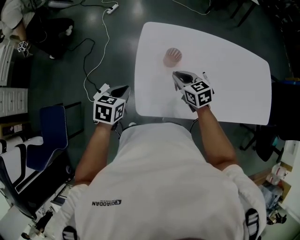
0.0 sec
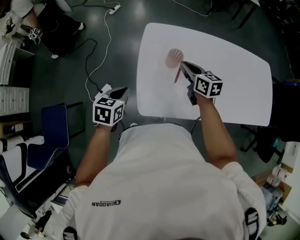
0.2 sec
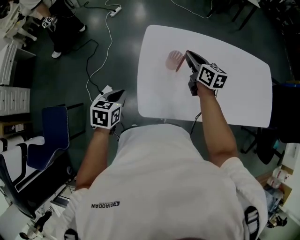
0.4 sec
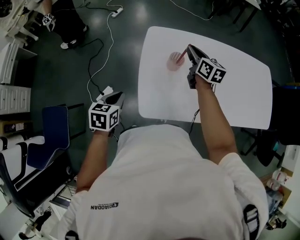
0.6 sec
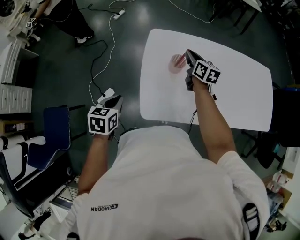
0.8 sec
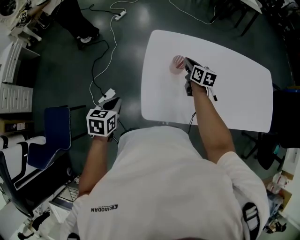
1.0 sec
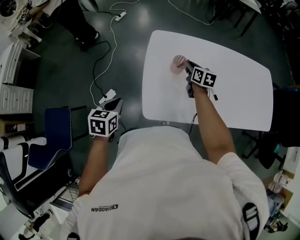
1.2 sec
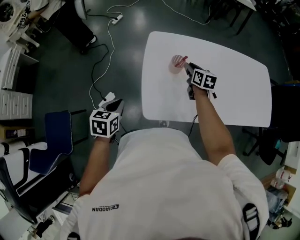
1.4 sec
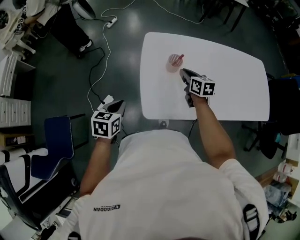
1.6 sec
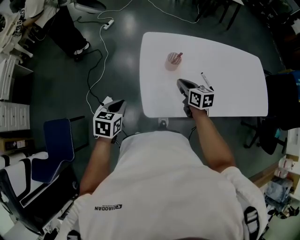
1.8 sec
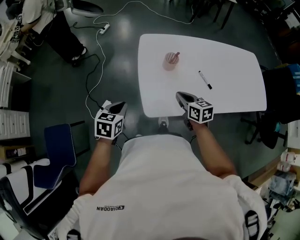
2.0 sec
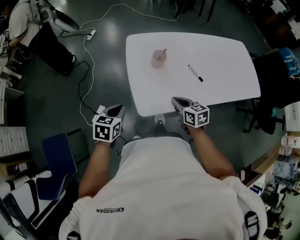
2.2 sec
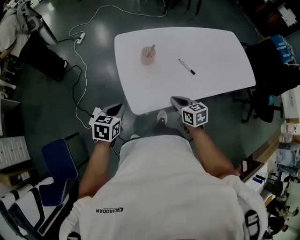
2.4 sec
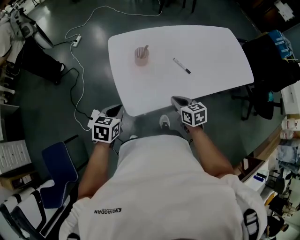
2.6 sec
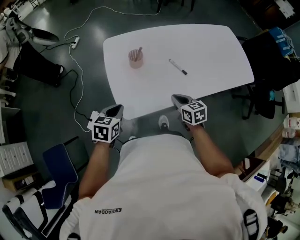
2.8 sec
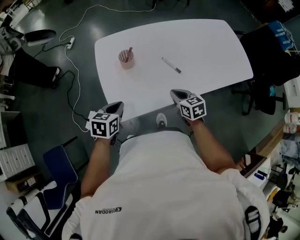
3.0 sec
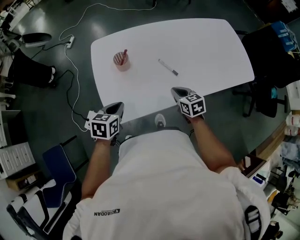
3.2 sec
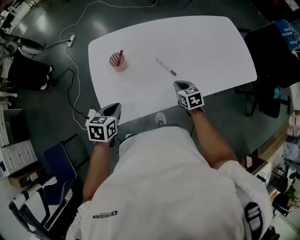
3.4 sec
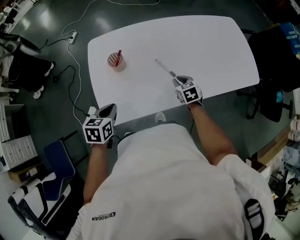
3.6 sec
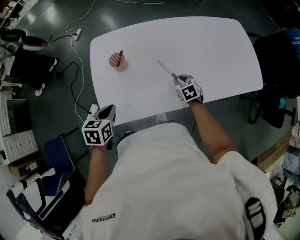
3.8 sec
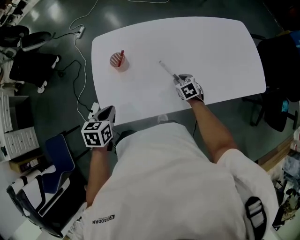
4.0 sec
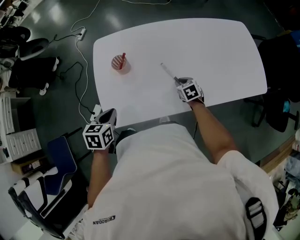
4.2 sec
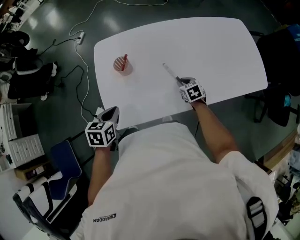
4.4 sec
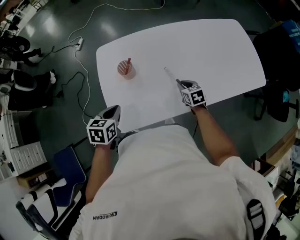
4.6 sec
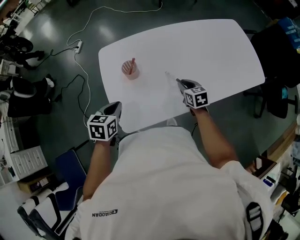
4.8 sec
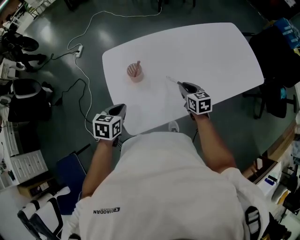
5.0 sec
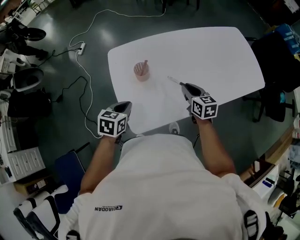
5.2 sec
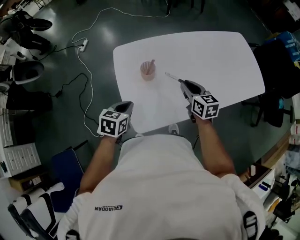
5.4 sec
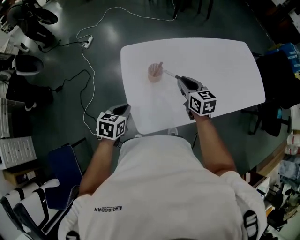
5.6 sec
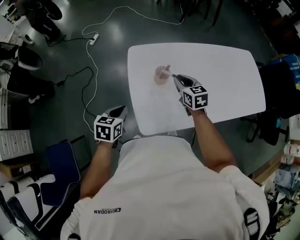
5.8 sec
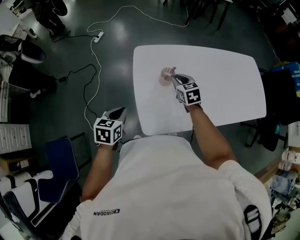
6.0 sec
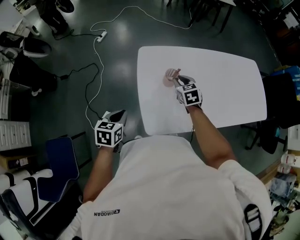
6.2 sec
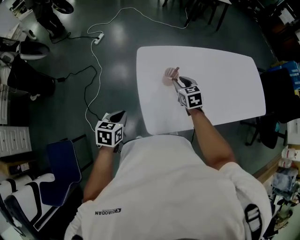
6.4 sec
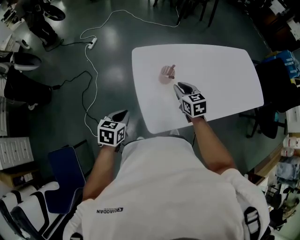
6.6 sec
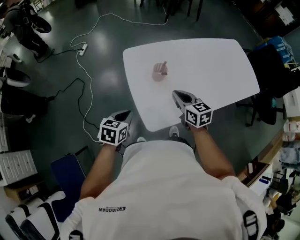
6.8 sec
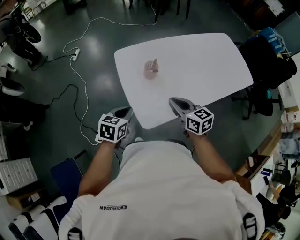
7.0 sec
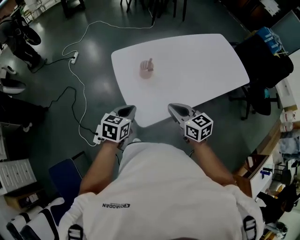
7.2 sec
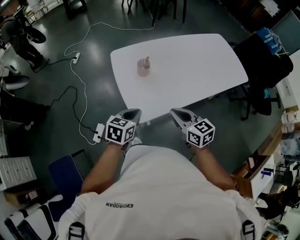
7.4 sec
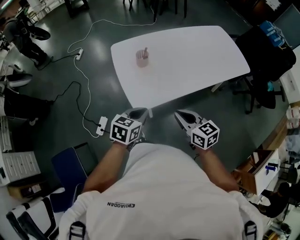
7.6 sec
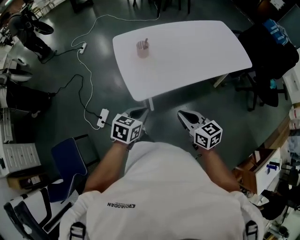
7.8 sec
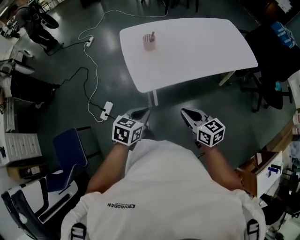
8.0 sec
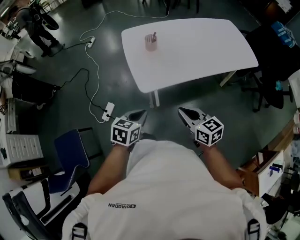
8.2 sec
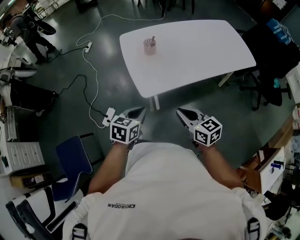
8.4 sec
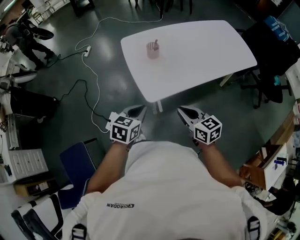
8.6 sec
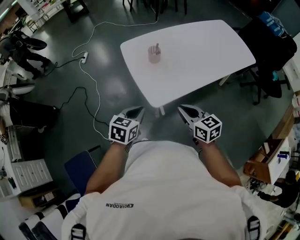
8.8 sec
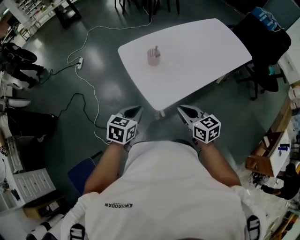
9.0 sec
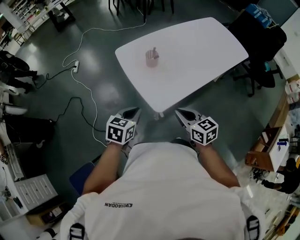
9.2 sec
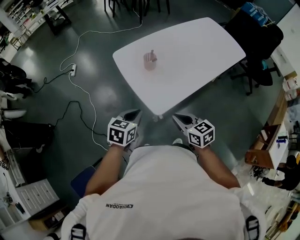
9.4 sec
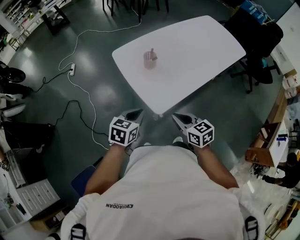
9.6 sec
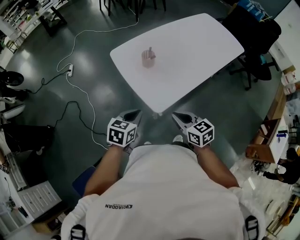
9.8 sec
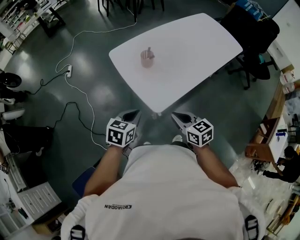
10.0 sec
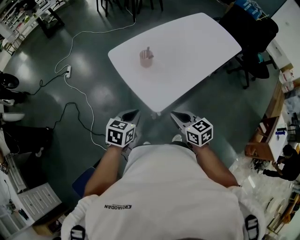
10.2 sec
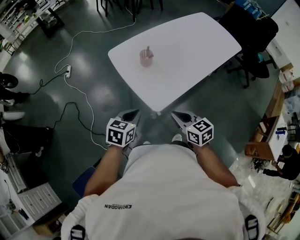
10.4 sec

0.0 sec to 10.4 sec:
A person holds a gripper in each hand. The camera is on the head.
0.0 sec to 1.4 sec: The left gripper is displaced to the left and backward by approximately 10 cm. Meanwhile the right gripper goes some 10 cm forward, and changes its angle by some 30 degrees.
1.4 sec to 3.0 sec: The left gripper moves to the right, some 20 cm, and turns by about 20 degrees. Meanwhile the right gripper travels backward and to the right by approximately 25 cm, and closes its fingers.
3.0 sec to 4.4 sec: The left gripper ends up some 5 cm from where it was. The right gripper travels forward, downward and to the right by about 20 cm.
4.4 sec to 6.0 sec: The left gripper heads to the left, covering roughly 20 cm, while the right gripper is displaced to the left and upward by roughly 35 cm.
6.0 sec to 7.4 sec: The left gripper heads to the right and backward, covering approximately 15 cm, and swivels about 30 degrees, while the right gripper shifts some 30 cm backward, and swivels approximately 20 degrees.
7.4 sec to 9.0 sec: The left gripper shifts about 10 cm to the left. The right gripper moves to the left and backward, roughly 10 cm.
9.0 sec to 10.4 sec: The grippers stay close to where they were, moving slightly.

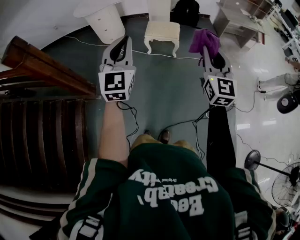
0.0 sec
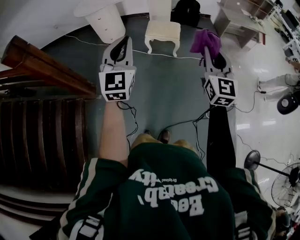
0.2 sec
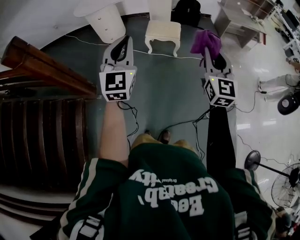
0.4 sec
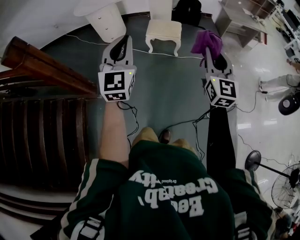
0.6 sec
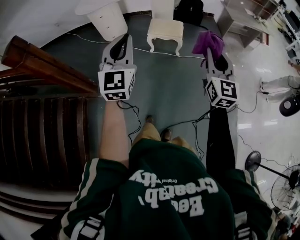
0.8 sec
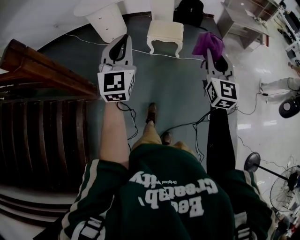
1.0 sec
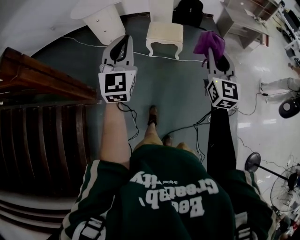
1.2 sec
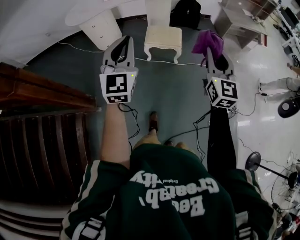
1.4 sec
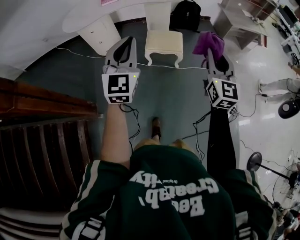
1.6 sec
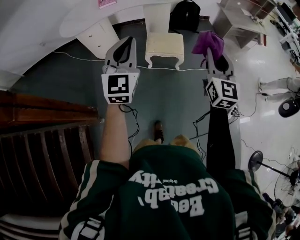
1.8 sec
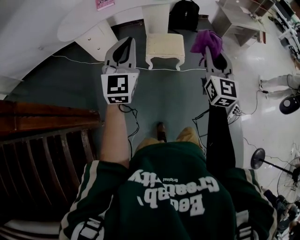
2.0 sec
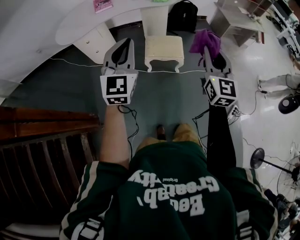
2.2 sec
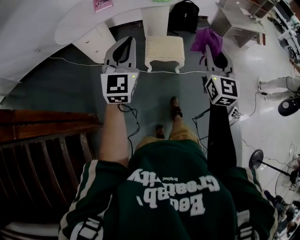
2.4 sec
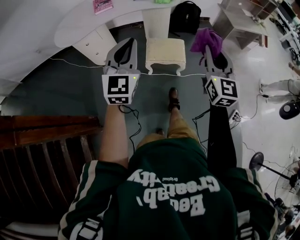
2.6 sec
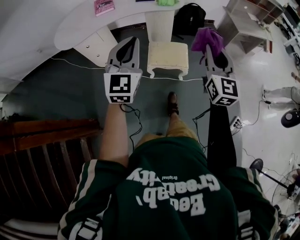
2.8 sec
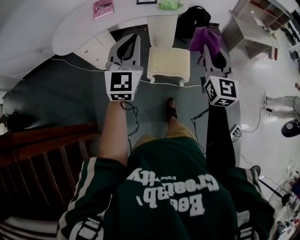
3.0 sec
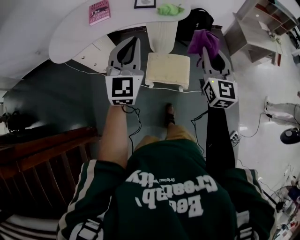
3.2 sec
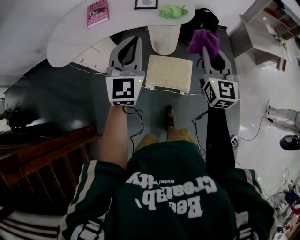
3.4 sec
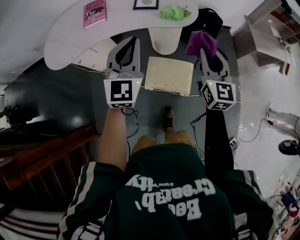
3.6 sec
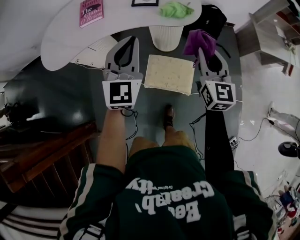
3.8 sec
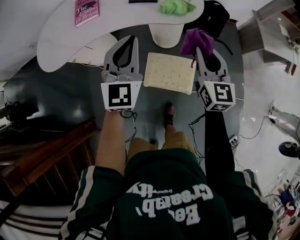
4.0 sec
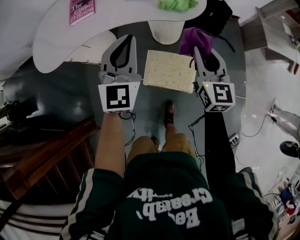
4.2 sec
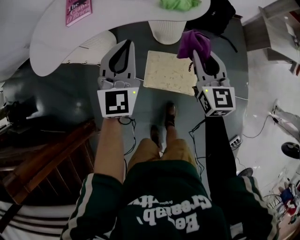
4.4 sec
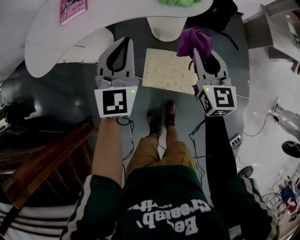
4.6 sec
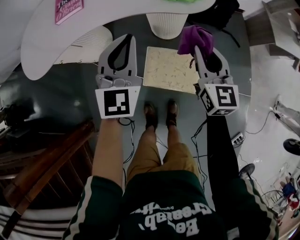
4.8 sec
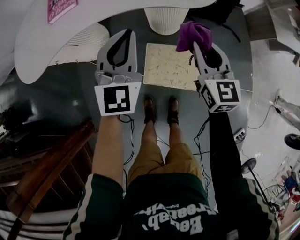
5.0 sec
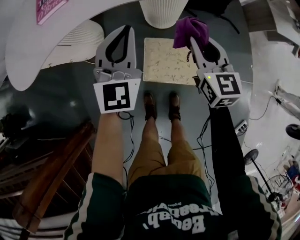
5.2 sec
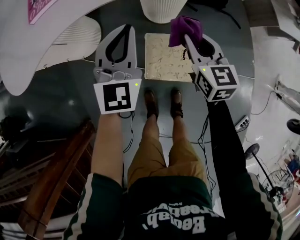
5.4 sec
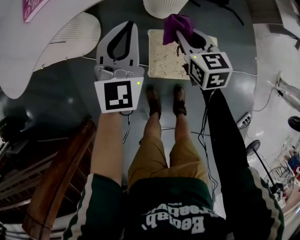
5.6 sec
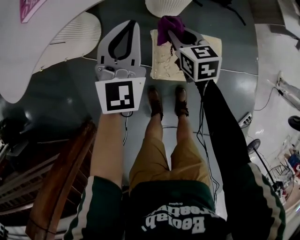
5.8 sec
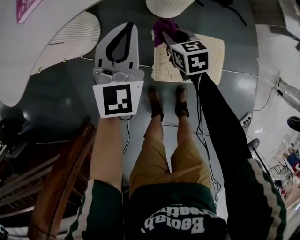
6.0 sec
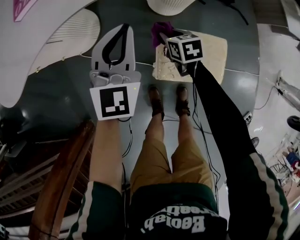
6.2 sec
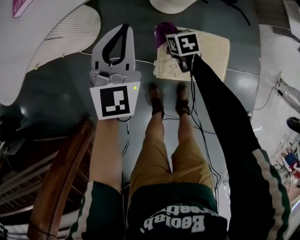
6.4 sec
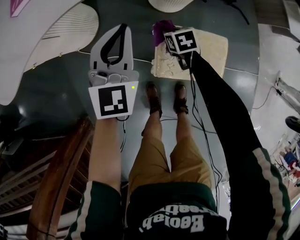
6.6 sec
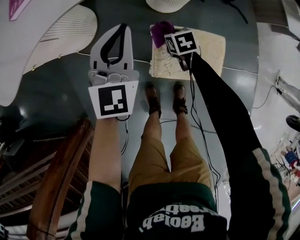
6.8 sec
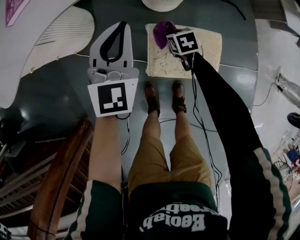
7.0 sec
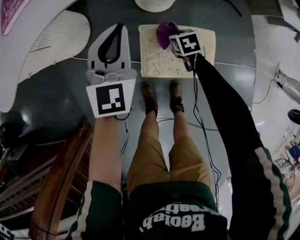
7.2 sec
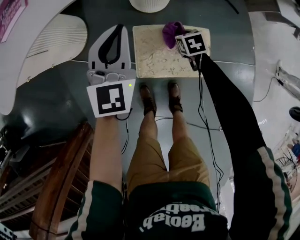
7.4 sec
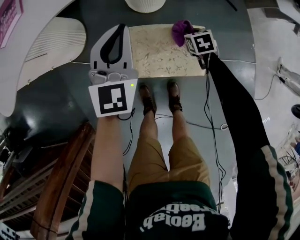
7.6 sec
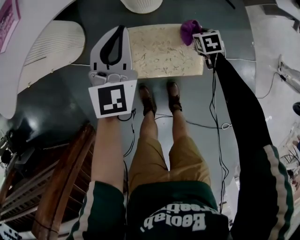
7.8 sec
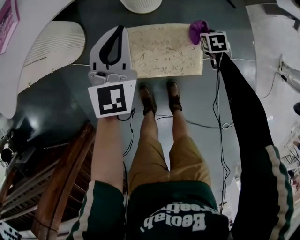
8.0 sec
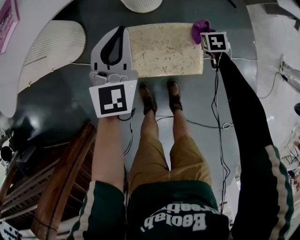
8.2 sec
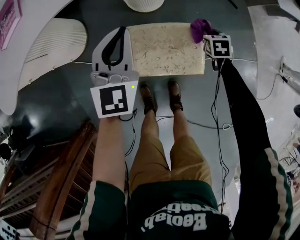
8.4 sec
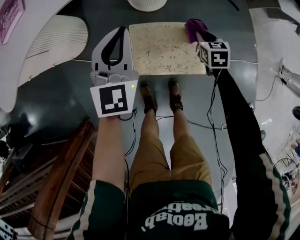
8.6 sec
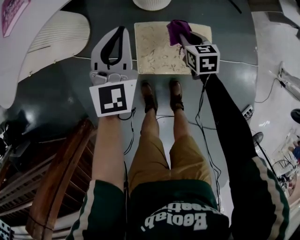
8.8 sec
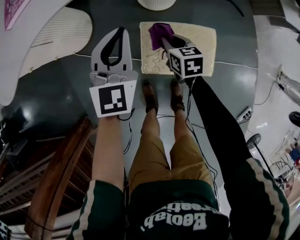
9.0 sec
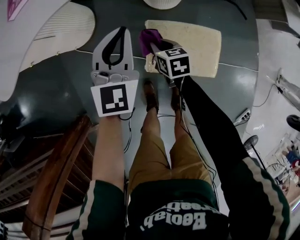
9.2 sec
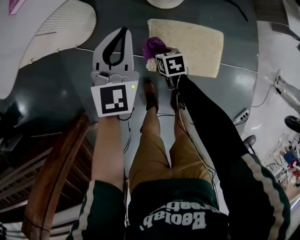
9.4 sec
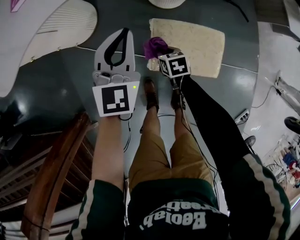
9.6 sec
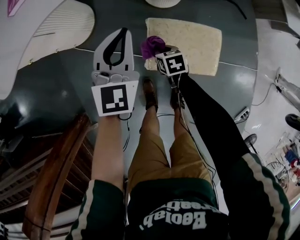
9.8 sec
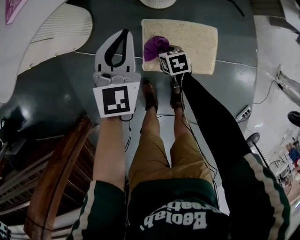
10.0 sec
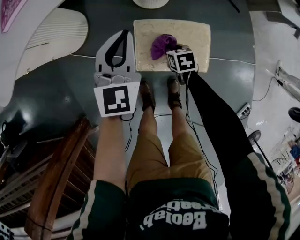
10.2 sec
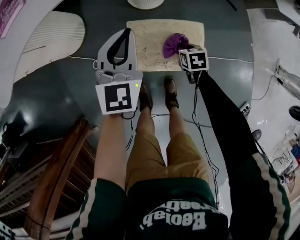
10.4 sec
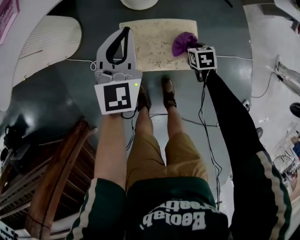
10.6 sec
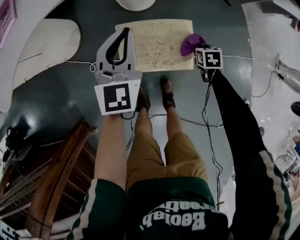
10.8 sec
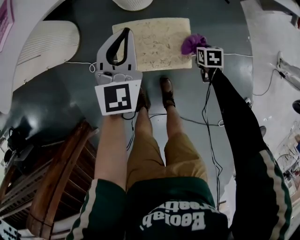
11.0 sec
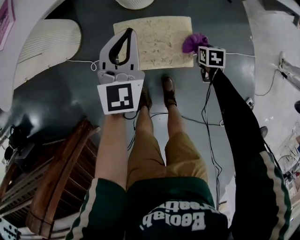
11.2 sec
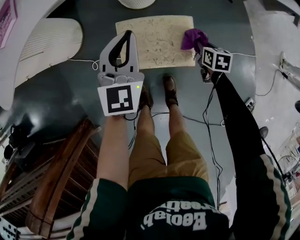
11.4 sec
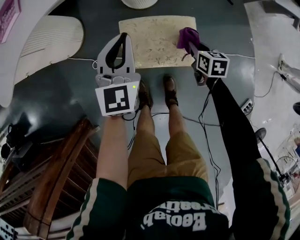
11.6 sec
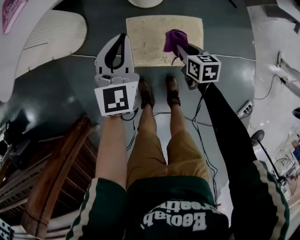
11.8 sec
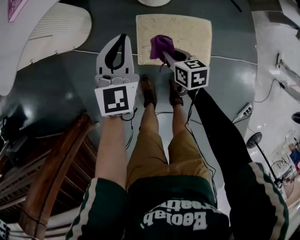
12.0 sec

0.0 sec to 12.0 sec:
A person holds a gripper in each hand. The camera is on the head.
0.0 sec to 1.6 sec: The two grippers go approximately 20 cm forward.
1.6 sec to 3.0 sec: Both grippers move forward, some 30 cm.
3.0 sec to 4.4 sec: Both grippers travel together forward and downward, about 30 cm. The right gripper changes its angle by about 20 degrees.
4.4 sec to 6.0 sec: The right gripper shifts about 35 cm downward and to the left, and points its fingers roughly 30 degrees further downward, while the left gripper is displaced downward and to the left by about 25 cm.
6.0 sec to 7.6 sec: The right gripper is displaced to the right and downward by some 25 cm, and changes its angle by about 20 degrees. Meanwhile the left gripper travels to the right by some 10 cm.
7.6 sec to 9.0 sec: The right gripper heads to the left and upward, covering approximately 15 cm, and changes its angle by some 20 degrees. Meanwhile the left gripper is displaced to the left by approximately 5 cm.
9.0 sec to 10.4 sec: The right gripper is displaced to the right, backward and downward by roughly 15 cm. The left gripper goes approximately 5 cm to the right.
10.4 sec to 12.0 sec: The left gripper is displaced to the left by roughly 5 cm; the right gripper goes some 15 cm to the left and upward, and swivels approximately 20 degrees.

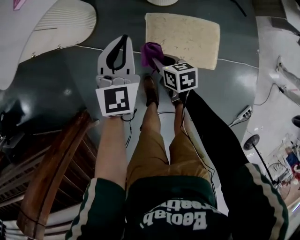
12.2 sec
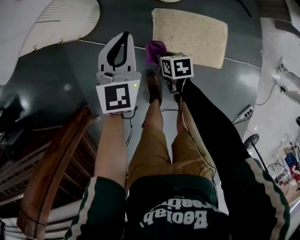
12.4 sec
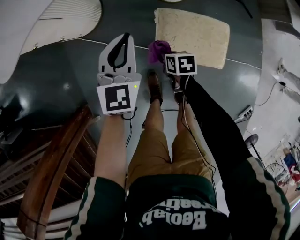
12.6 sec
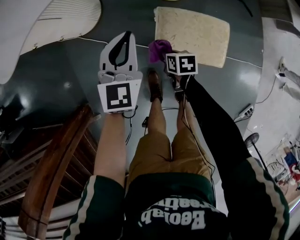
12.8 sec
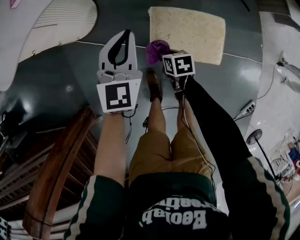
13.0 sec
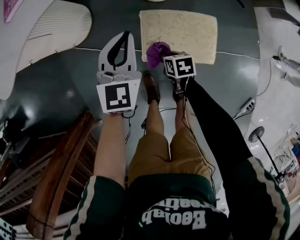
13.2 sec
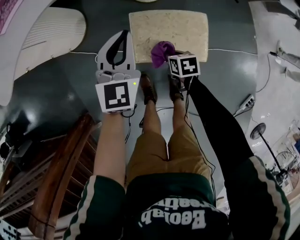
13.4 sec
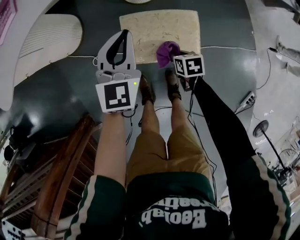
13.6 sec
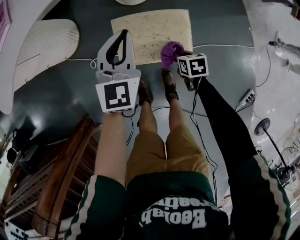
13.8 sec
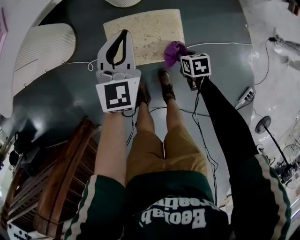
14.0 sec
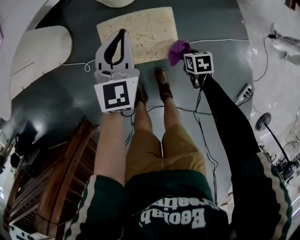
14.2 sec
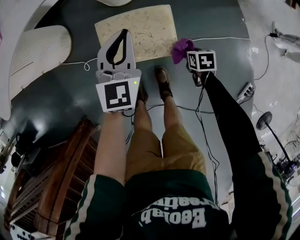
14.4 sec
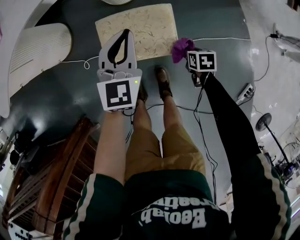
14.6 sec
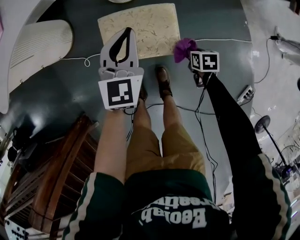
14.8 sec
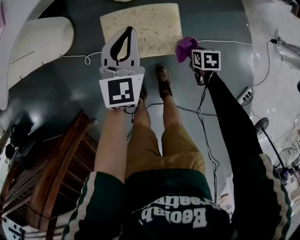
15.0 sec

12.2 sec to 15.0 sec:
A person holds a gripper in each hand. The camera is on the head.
12.2 sec to 13.6 sec: The left gripper moves to the right, about 10 cm. Meanwhile the right gripper heads to the right, backward and downward, covering approximately 20 cm.
13.6 sec to 15.0 sec: The left gripper travels to the right by about 10 cm. Meanwhile the right gripper heads to the right, covering some 15 cm.
